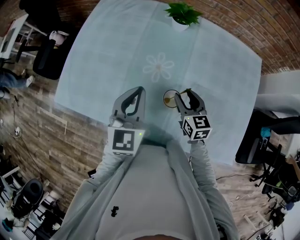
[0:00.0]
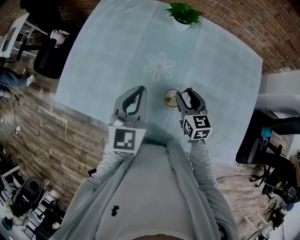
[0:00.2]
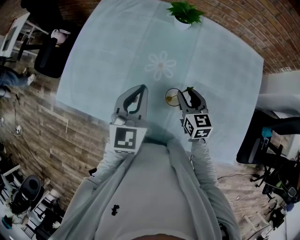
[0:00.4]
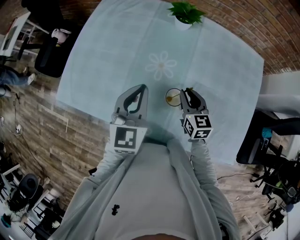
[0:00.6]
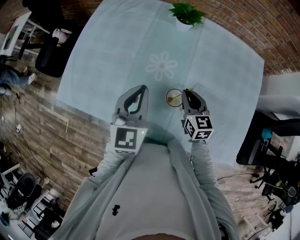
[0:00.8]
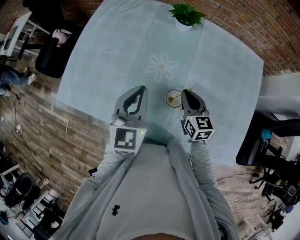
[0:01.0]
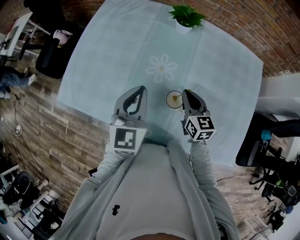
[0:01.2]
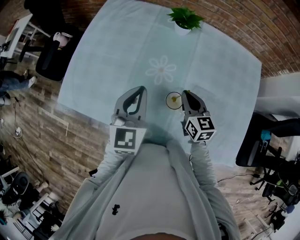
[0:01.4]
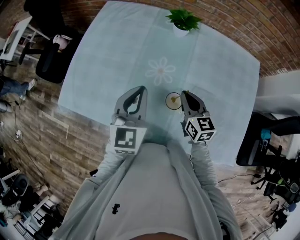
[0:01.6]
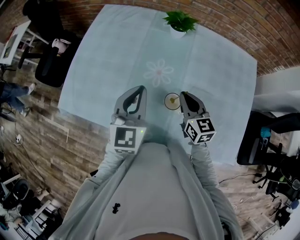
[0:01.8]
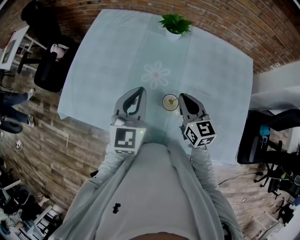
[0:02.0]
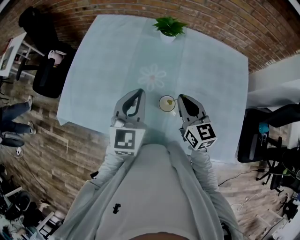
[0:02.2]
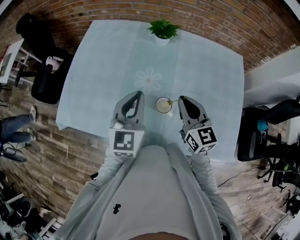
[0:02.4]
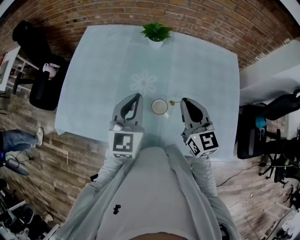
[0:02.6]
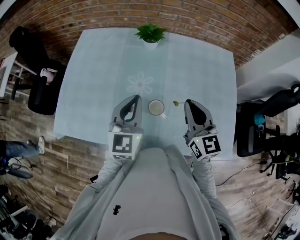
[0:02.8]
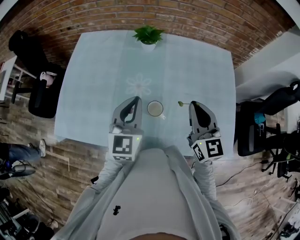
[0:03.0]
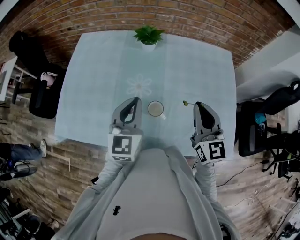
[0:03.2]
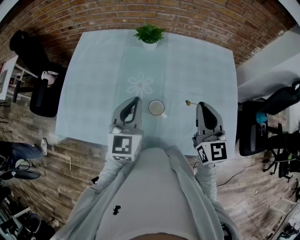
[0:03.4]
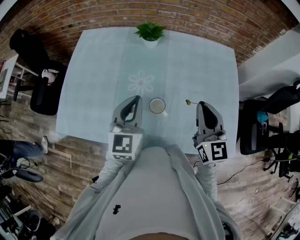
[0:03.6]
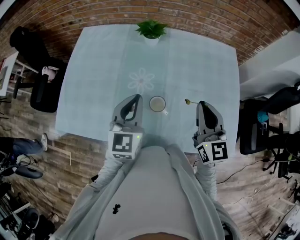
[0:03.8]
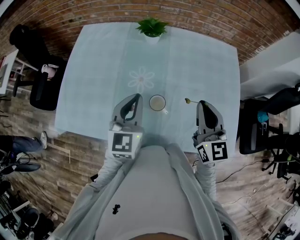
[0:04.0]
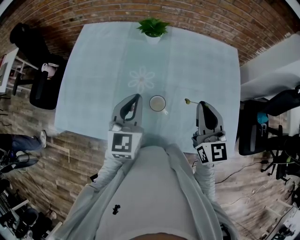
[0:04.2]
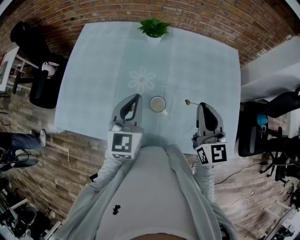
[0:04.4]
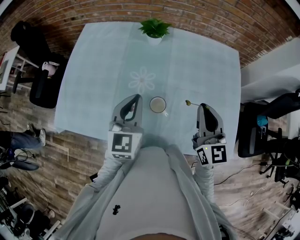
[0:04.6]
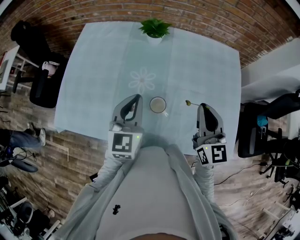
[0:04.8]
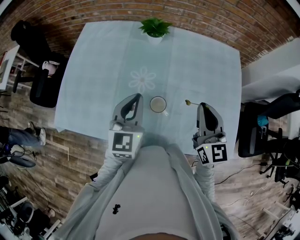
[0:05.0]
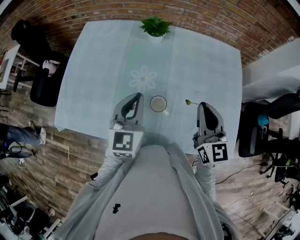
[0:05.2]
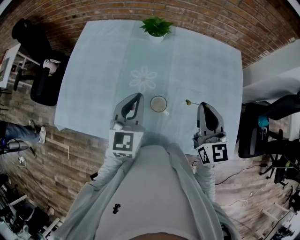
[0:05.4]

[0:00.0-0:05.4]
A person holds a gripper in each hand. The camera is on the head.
0.0 to 1.4 s: The right gripper closes up.
1.4 to 2.8 s: The left gripper moves to the right, about 5 cm; the right gripper heads upward and backward, covering about 15 cm, and rotates approximately 20 degrees.
2.8 to 4.0 s: The grippers make only small movements.
4.0 to 5.4 s: Both grippers stay about where they are.

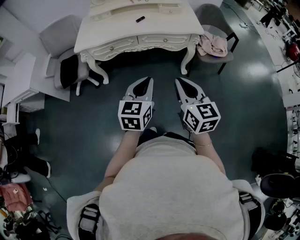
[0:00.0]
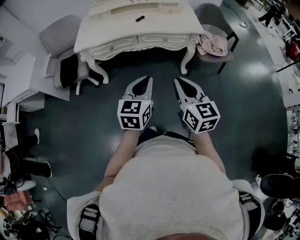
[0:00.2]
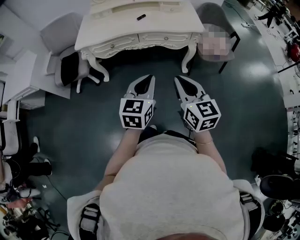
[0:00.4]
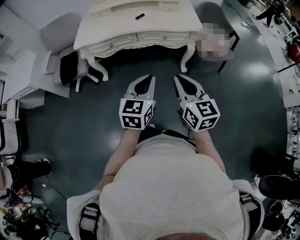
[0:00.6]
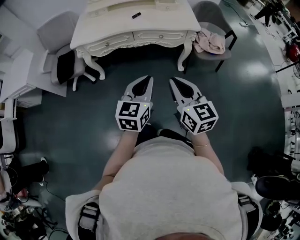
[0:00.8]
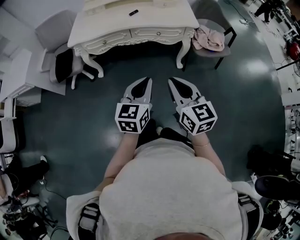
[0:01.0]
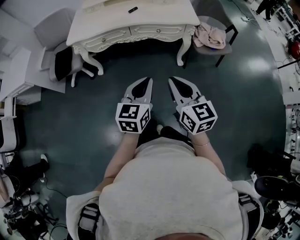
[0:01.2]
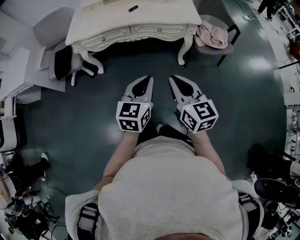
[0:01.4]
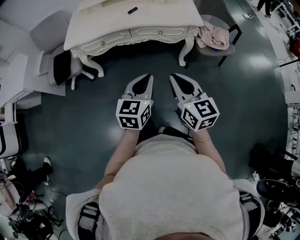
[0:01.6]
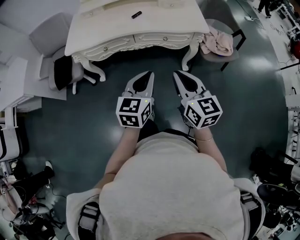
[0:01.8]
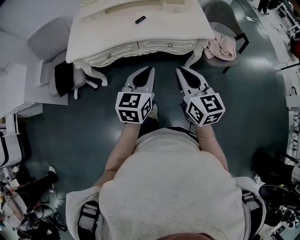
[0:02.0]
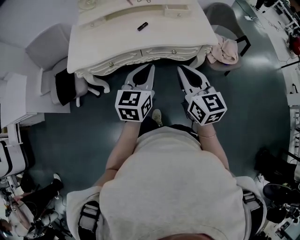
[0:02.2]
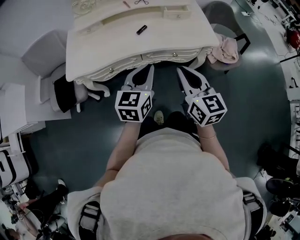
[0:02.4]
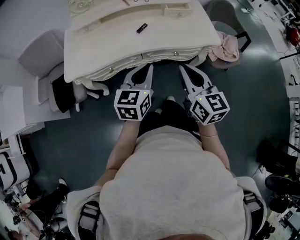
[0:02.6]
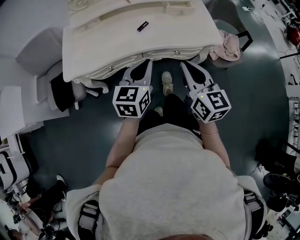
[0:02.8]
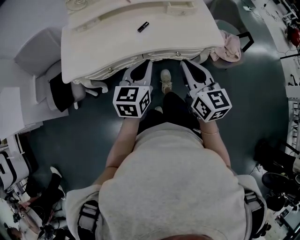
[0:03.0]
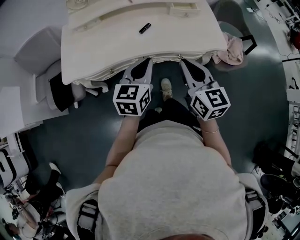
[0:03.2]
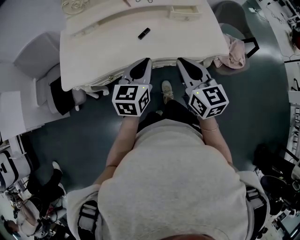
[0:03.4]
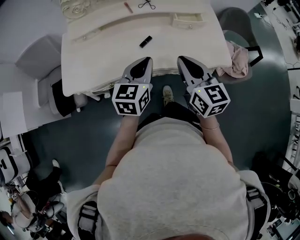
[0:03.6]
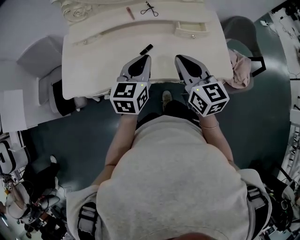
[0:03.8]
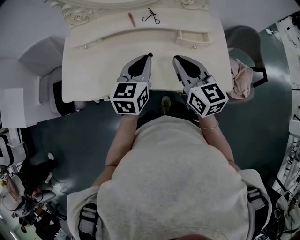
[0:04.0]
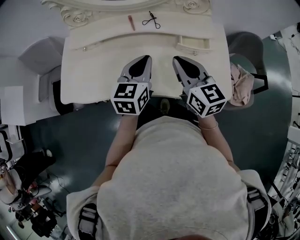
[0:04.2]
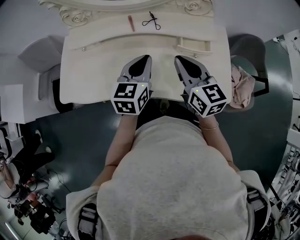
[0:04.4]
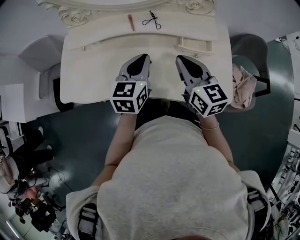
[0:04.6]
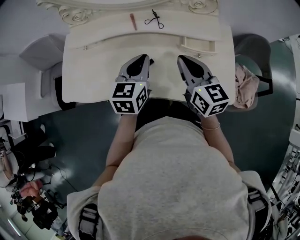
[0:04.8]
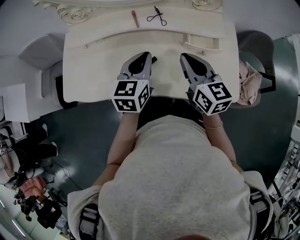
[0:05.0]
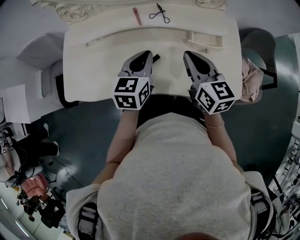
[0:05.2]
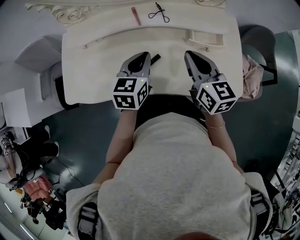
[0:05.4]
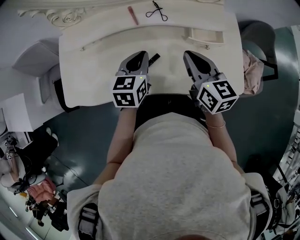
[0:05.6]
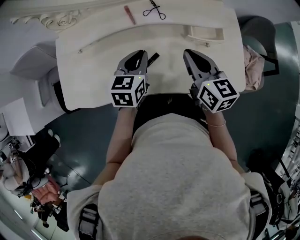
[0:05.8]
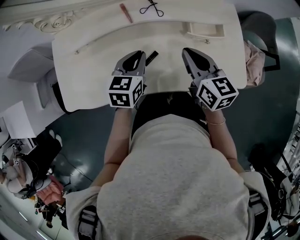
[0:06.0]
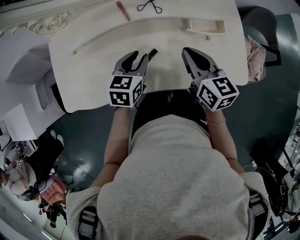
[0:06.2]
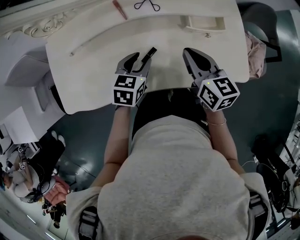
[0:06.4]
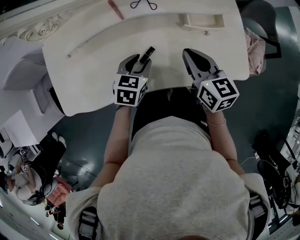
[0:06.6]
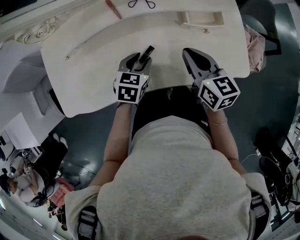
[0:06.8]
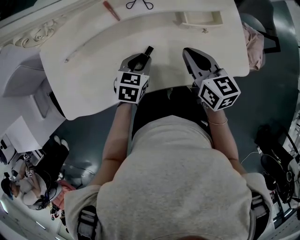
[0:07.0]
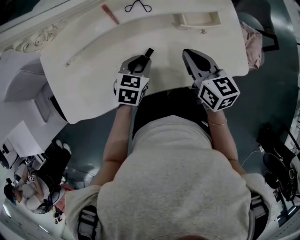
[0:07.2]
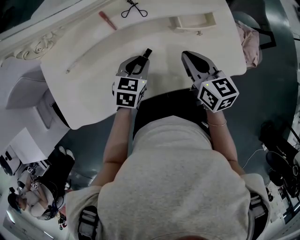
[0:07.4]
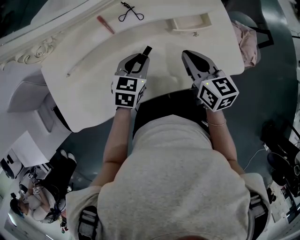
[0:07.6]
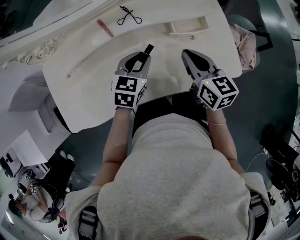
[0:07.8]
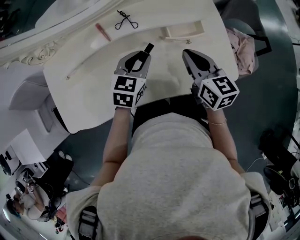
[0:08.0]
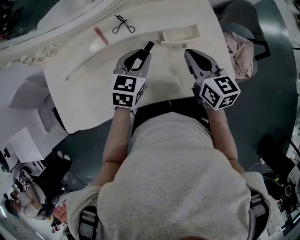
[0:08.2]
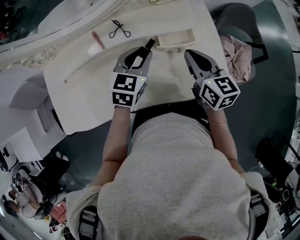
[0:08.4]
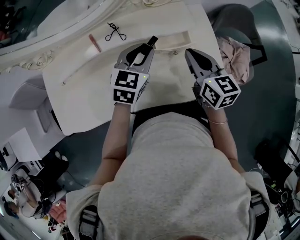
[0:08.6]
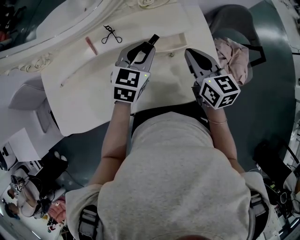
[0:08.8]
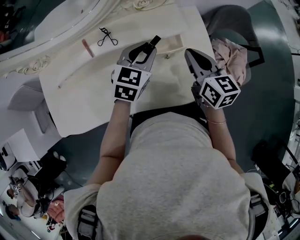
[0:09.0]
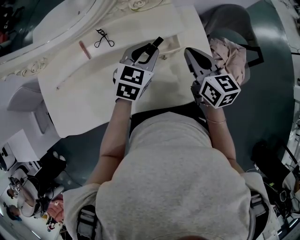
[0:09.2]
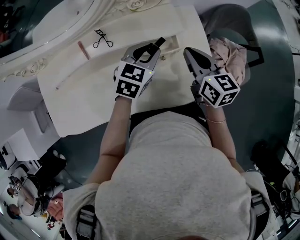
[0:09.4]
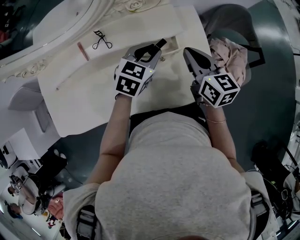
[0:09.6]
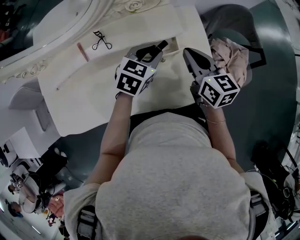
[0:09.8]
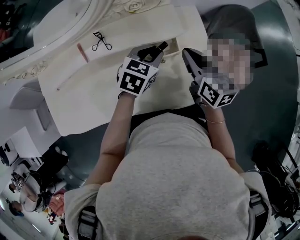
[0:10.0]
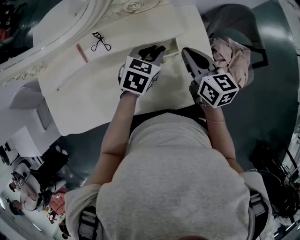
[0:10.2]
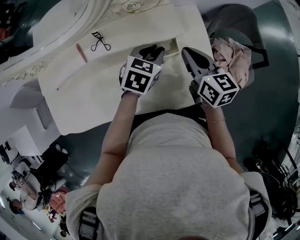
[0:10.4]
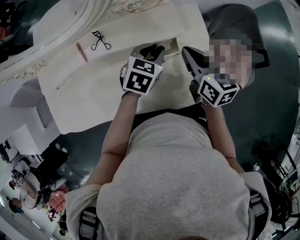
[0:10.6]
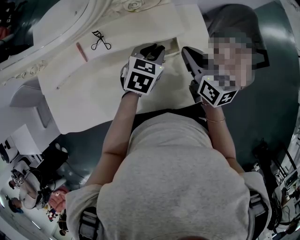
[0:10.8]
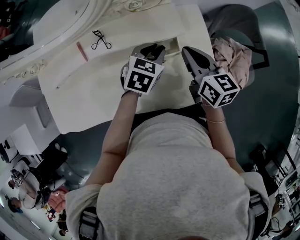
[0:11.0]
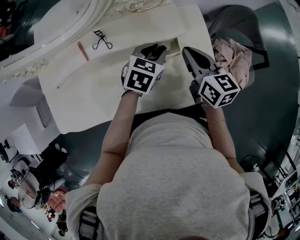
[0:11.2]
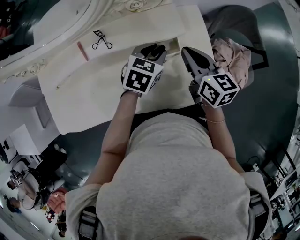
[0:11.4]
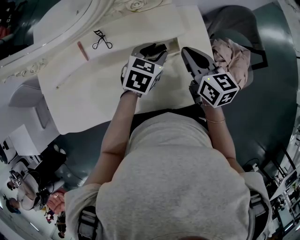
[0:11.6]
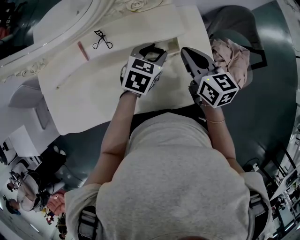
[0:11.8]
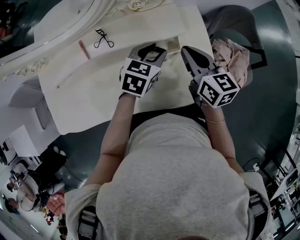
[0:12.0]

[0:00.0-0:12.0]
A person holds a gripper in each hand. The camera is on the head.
0.0 to 1.6 s: The right gripper shifts by about 5 cm. The left gripper ends up some 5 cm from where it was.
1.6 to 3.0 s: The left gripper travels forward and to the left by approximately 30 cm; the right gripper moves forward, approximately 25 cm.
3.0 to 4.4 s: Both grippers move forward, some 25 cm.
4.4 to 6.0 s: The grippers both shift downward by approximately 5 cm.
6.0 to 7.6 s: The left gripper opens.
7.6 to 9.0 s: The right gripper is displaced to the right and forward by about 15 cm; the left gripper moves to the right, forward and upward, some 20 cm.
9.0 to 10.4 s: The left gripper travels downward by approximately 5 cm.
10.4 to 12.0 s: There are only small adjustments of the grippers.

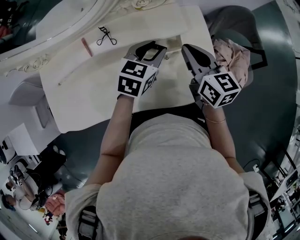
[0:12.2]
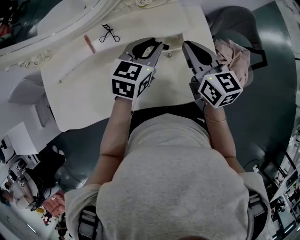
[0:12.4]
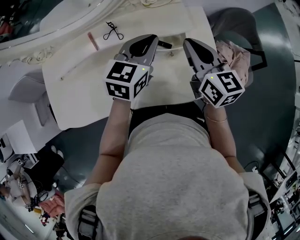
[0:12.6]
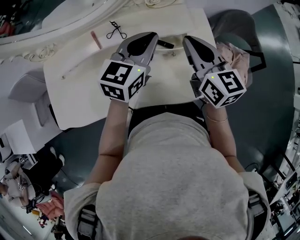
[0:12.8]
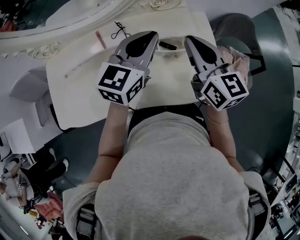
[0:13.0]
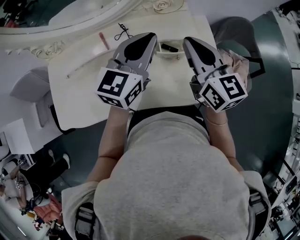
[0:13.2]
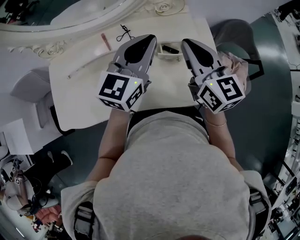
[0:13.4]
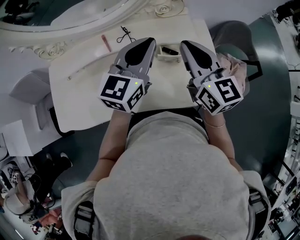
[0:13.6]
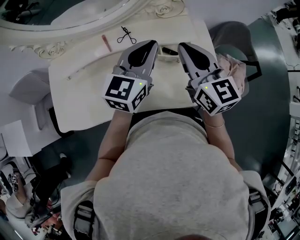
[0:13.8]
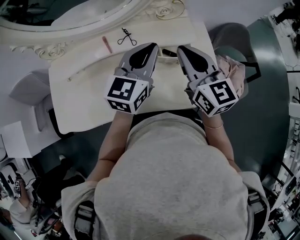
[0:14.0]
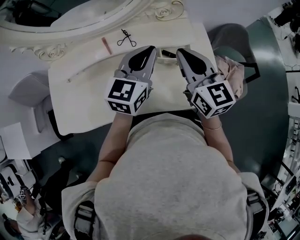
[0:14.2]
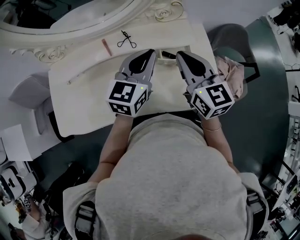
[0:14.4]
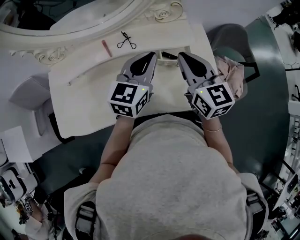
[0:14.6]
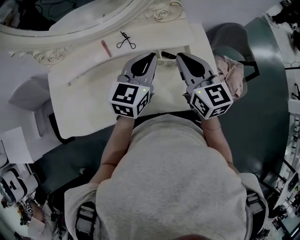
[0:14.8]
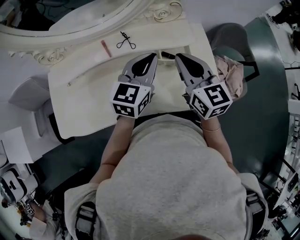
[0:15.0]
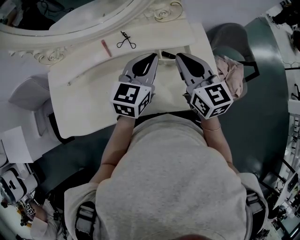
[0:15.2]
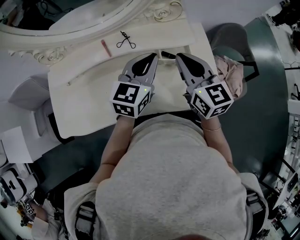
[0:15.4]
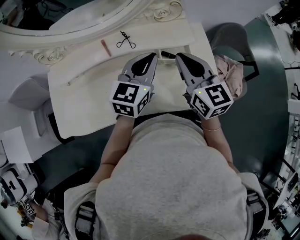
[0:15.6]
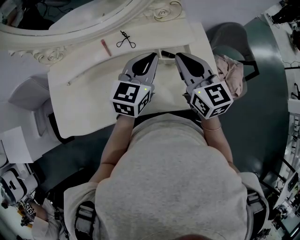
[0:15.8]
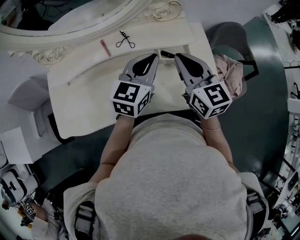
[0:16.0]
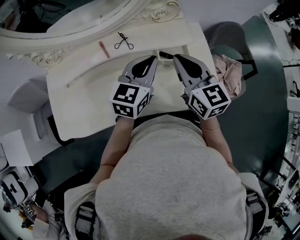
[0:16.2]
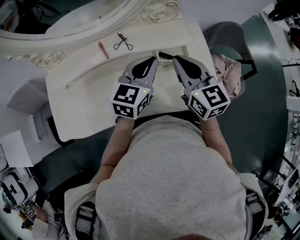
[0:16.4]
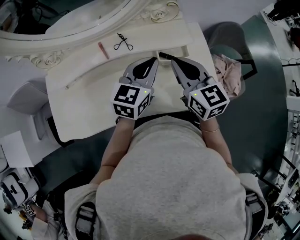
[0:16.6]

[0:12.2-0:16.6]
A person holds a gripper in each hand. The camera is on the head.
12.2 to 13.6 s: The grippers both shift upward and to the left by roughly 15 cm. The left gripper points its fingers about 30 degrees further upward, and closes its fingers.
13.6 to 15.2 s: The left gripper travels downward by roughly 5 cm.
15.2 to 16.6 s: There are only small adjustments of the grippers.

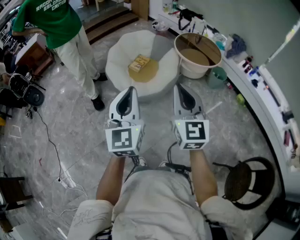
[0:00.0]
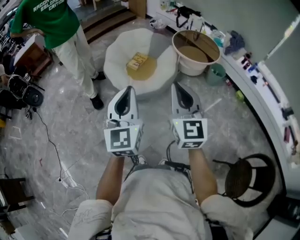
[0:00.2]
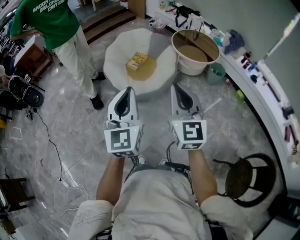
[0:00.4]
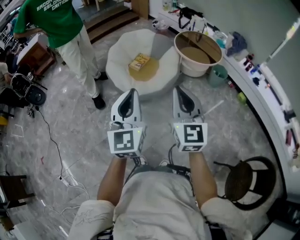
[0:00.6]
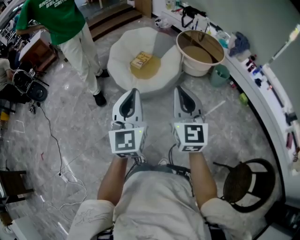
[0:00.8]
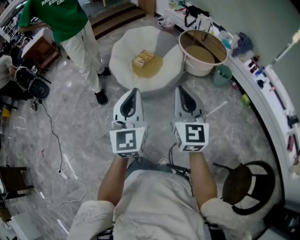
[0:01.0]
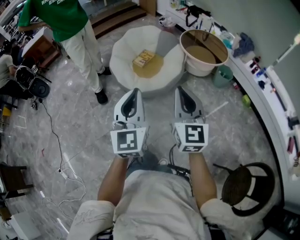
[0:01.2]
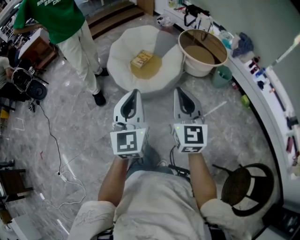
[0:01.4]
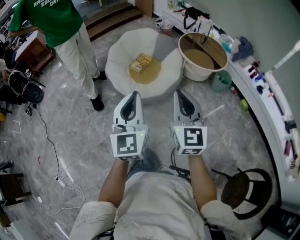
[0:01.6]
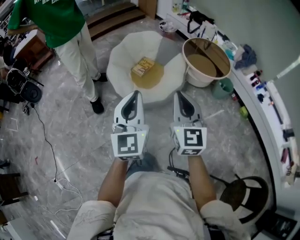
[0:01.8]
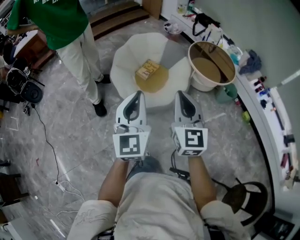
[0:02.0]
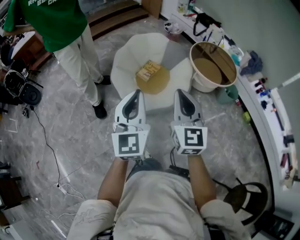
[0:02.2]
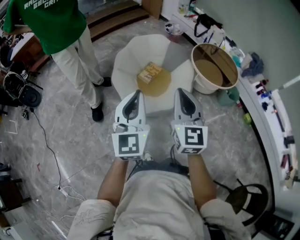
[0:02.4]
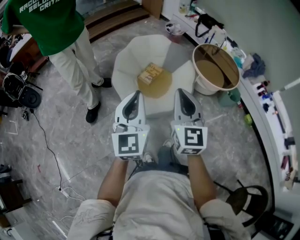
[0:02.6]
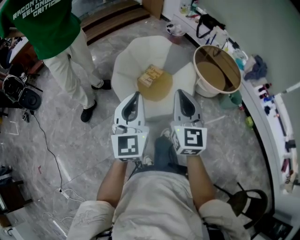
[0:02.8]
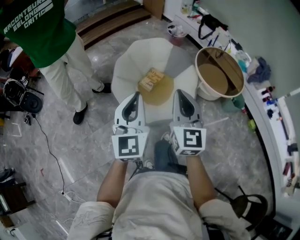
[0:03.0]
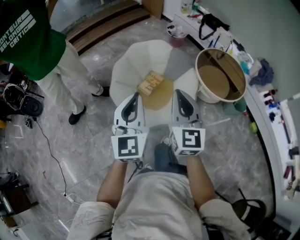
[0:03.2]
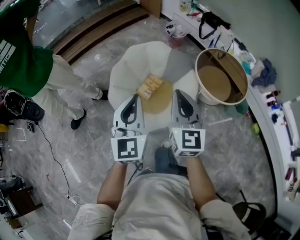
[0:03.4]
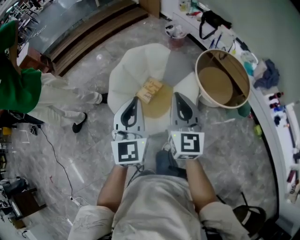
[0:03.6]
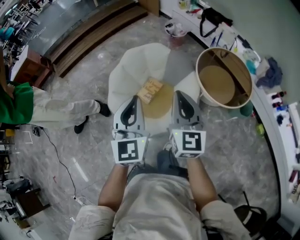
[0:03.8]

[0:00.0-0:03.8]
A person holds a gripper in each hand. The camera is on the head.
0.0 to 1.2 s: The left gripper heads to the right, covering approximately 5 cm.
1.2 to 2.6 s: The grippers both shift forward and to the left by approximately 30 cm.
2.6 to 3.8 s: The grippers both shift forward and to the right by approximately 30 cm.
